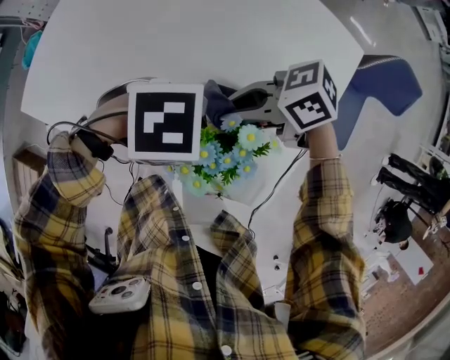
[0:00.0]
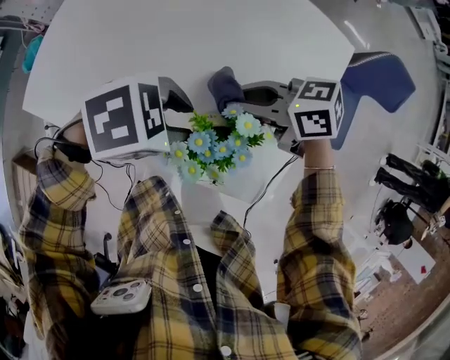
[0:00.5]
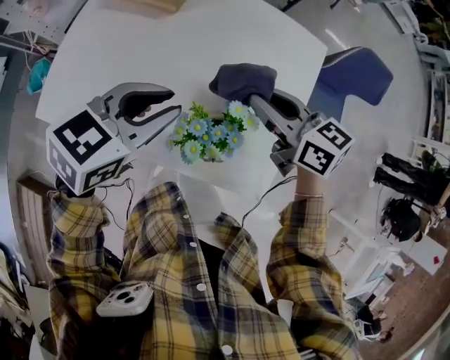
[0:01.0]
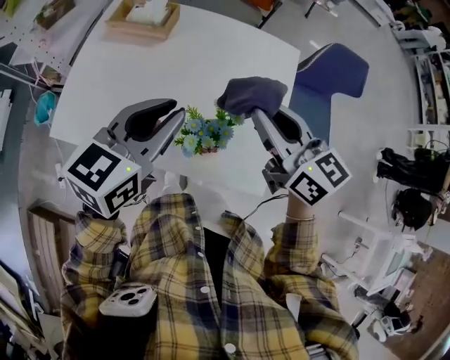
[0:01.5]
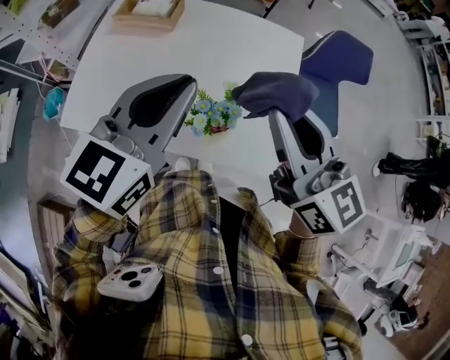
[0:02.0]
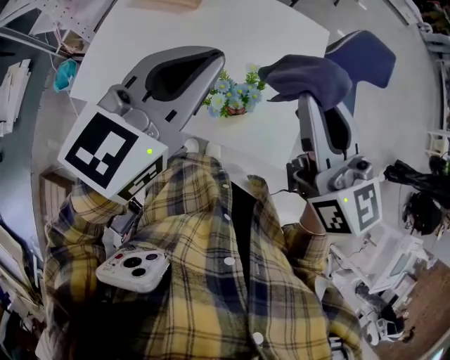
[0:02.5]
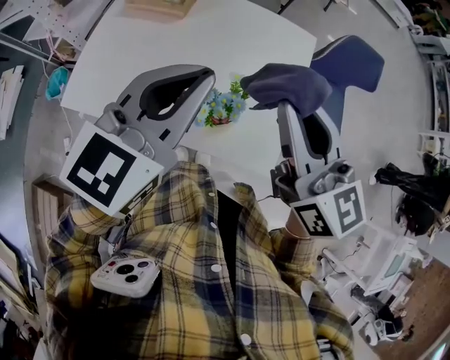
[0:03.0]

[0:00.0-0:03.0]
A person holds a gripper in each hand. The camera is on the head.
0:00.0 to 0:01.5: The grippers both shift upward by roughly 20 cm. The right gripper changes its angle by about 80 degrees, while the left gripper points its fingers approximately 30 degrees further upward.
0:01.5 to 0:03.0: The left gripper shifts approximately 10 cm upward. Meanwhile the right gripper is displaced upward and backward by roughly 10 cm.

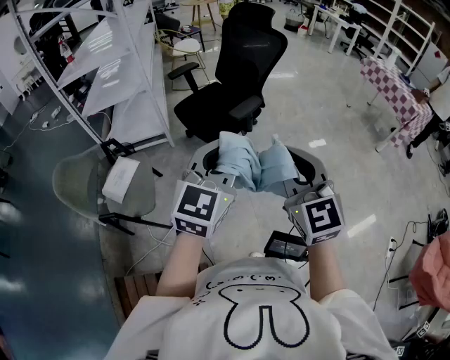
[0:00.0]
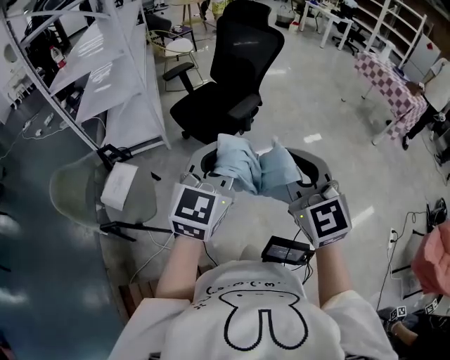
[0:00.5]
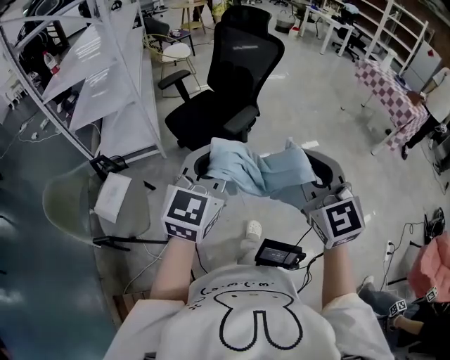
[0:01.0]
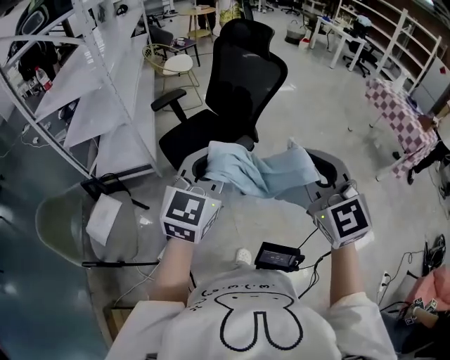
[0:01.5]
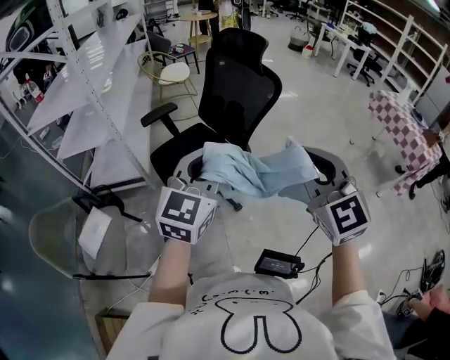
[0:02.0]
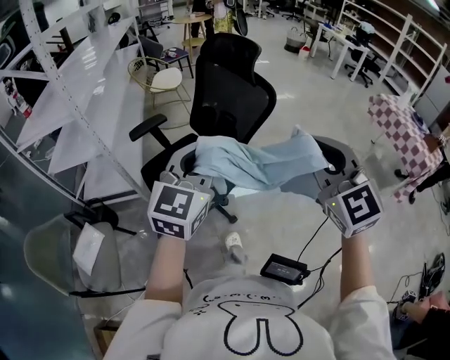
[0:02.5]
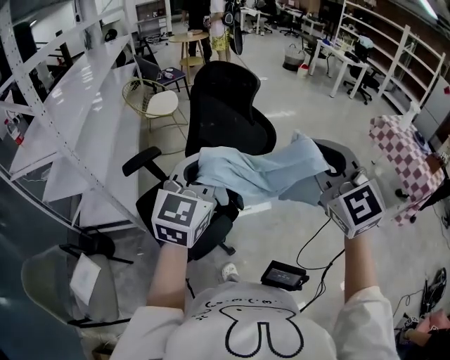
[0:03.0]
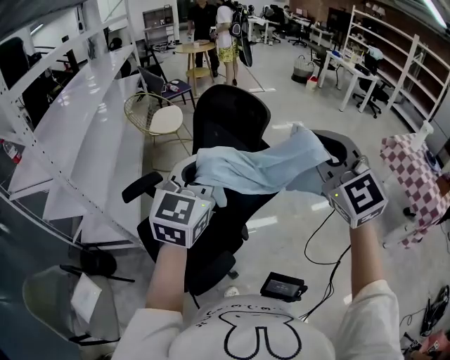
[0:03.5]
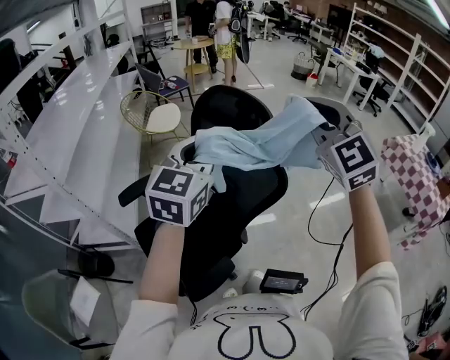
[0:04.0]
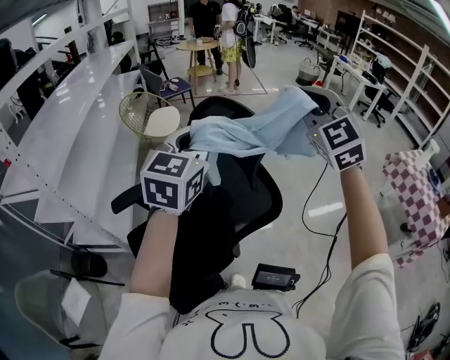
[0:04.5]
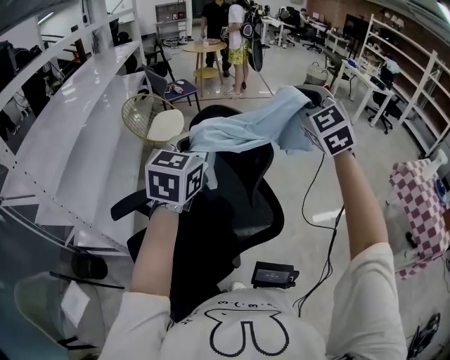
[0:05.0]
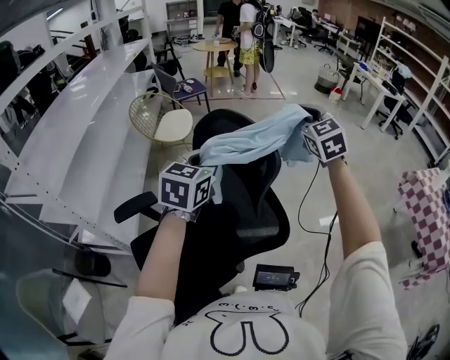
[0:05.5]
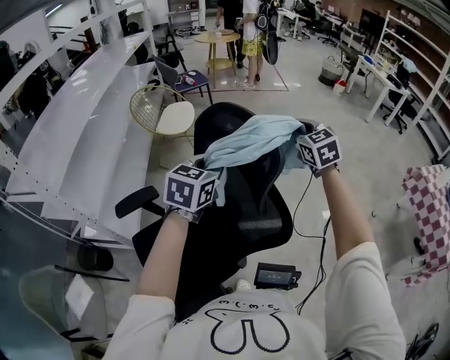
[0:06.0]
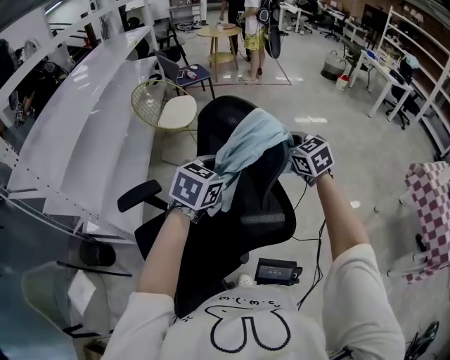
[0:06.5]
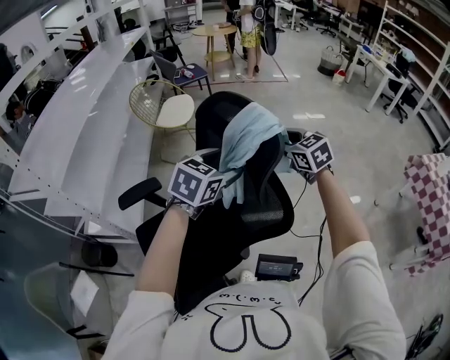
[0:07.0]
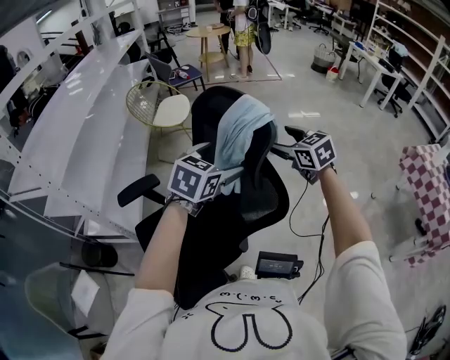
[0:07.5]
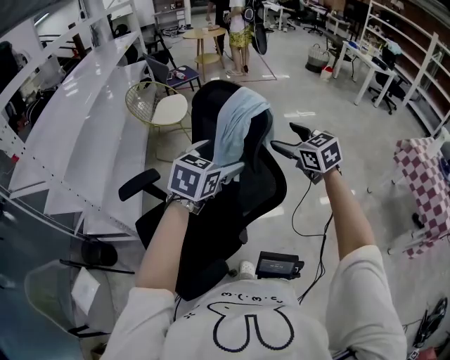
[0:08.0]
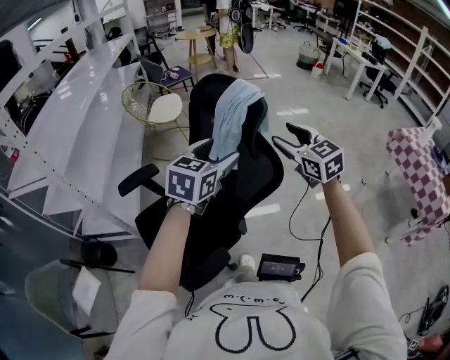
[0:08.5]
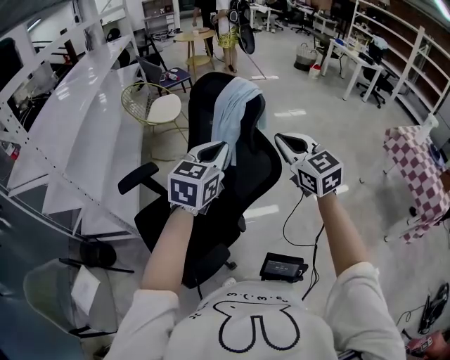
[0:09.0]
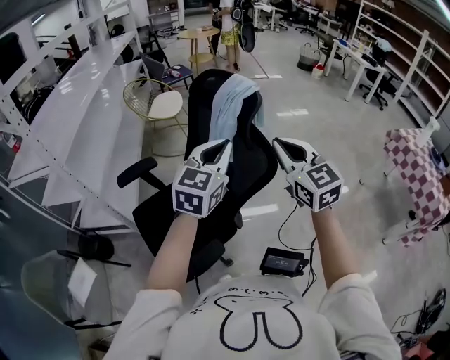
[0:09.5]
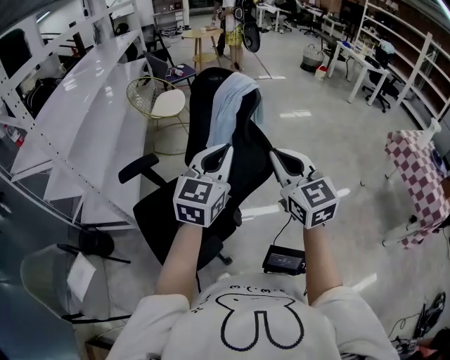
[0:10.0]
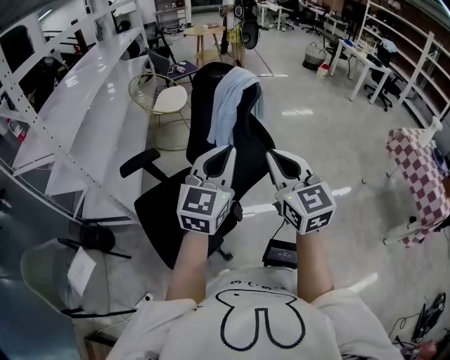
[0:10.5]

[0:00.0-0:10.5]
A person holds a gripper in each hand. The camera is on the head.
0:00.0 to 0:02.0: The right gripper is displaced forward and to the right by roughly 40 cm. Meanwhile the left gripper shifts roughly 35 cm forward.
0:02.0 to 0:04.0: The two grippers travel together, forward, some 50 cm.
0:04.0 to 0:06.5: The left gripper heads downward and forward, covering about 25 cm, changes its angle by approximately 30 degrees, and opens; the right gripper is displaced forward and downward by about 35 cm, and turns by some 40 degrees.
0:06.5 to 0:08.5: Both grippers travel together backward, roughly 15 cm. The right gripper opens.
0:08.5 to 0:10.5: Both grippers travel together backward, roughly 15 cm. The right gripper closes its fingers. The left gripper turns by roughly 20 degrees, and closes up.

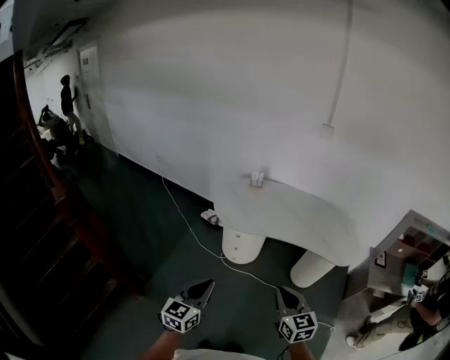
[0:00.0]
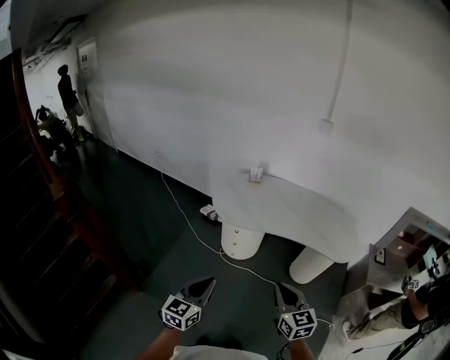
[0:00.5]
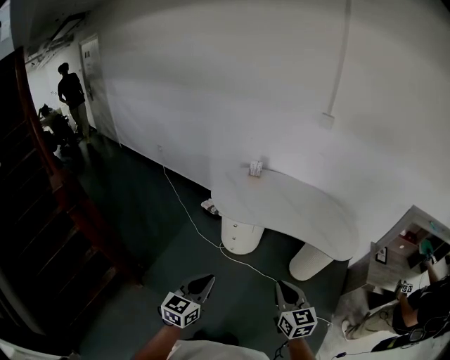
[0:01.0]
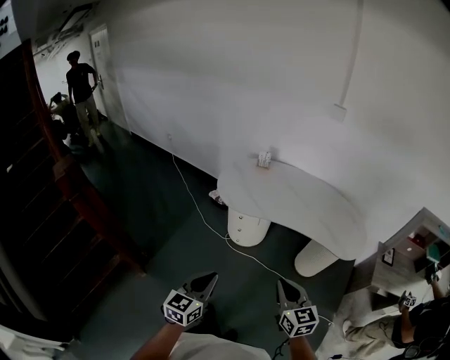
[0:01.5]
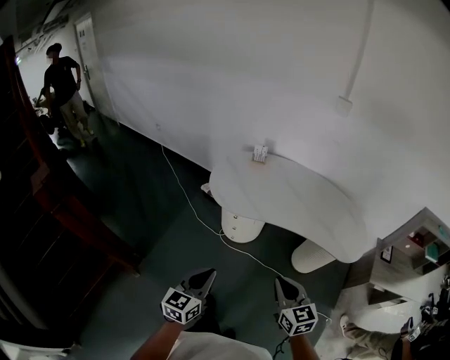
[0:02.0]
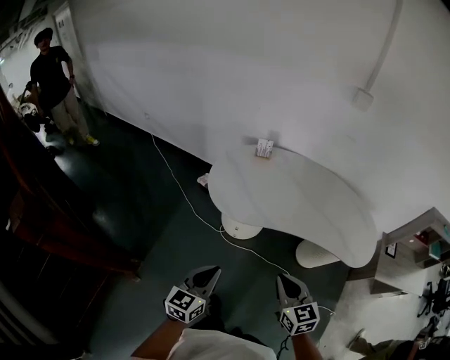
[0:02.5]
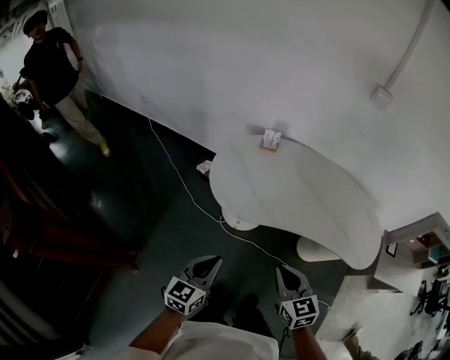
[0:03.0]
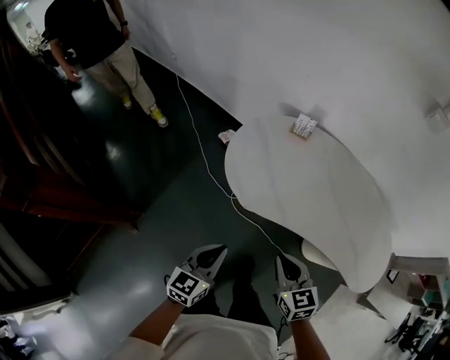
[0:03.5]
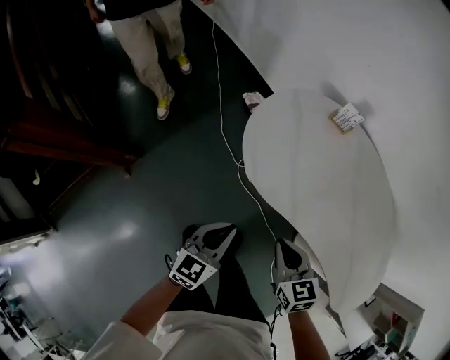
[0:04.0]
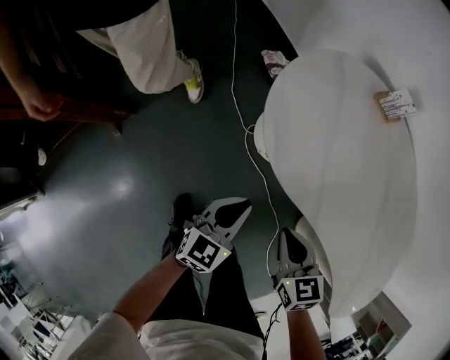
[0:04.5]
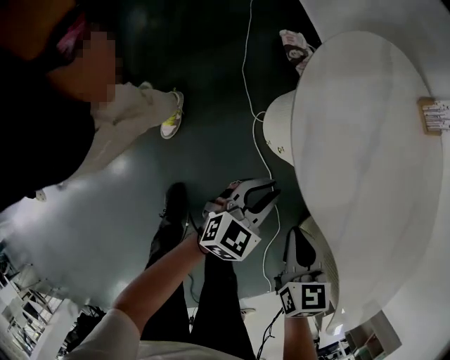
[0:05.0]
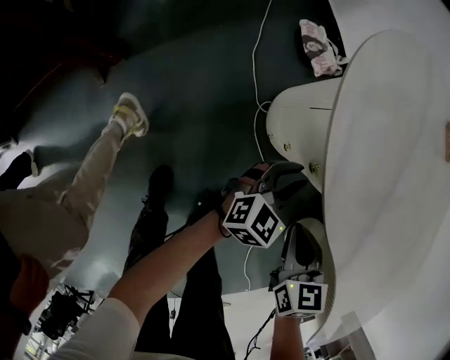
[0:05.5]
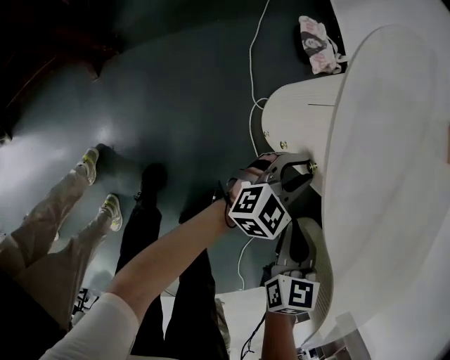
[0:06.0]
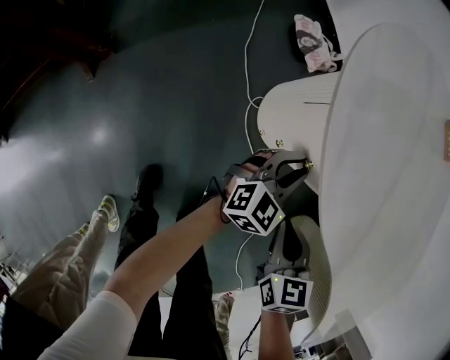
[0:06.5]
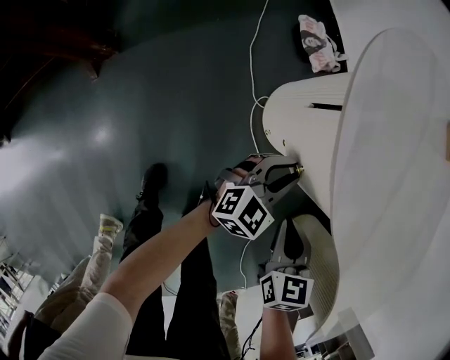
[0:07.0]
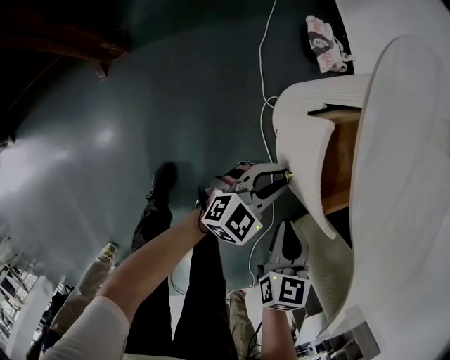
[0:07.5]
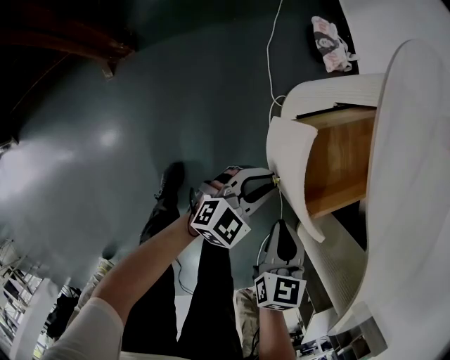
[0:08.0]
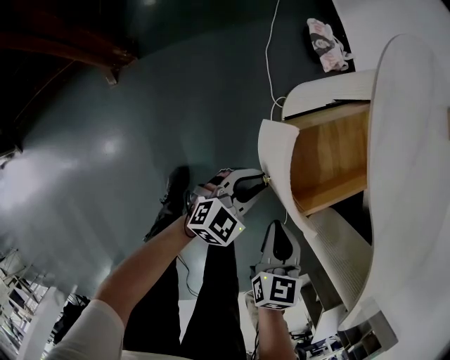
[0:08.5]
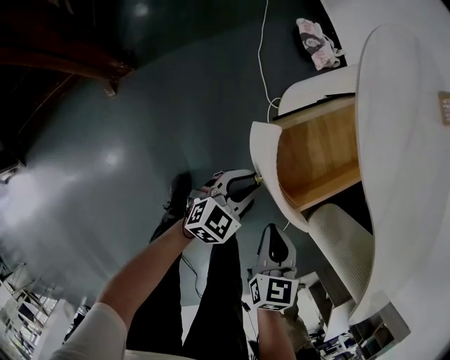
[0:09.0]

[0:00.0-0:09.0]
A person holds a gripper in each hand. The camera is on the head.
0:00.0 to 0:02.0: The left gripper heads forward, downward and to the right, covering roughly 15 cm; the right gripper is displaced forward and downward by approximately 10 cm.
0:02.0 to 0:04.5: The left gripper shifts roughly 35 cm downward. The right gripper moves about 50 cm, and changes its angle by roughly 40 degrees.
0:04.5 to 0:07.0: The two grippers go approximately 20 cm downward.
0:07.0 to 0:09.0: The grippers both shift backward and to the left by approximately 20 cm.

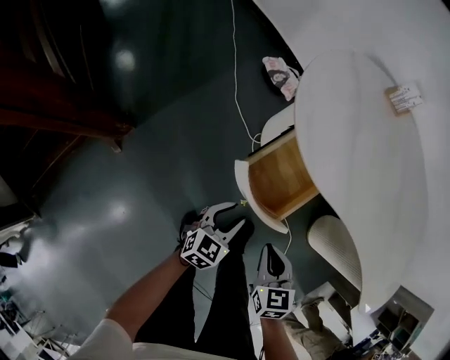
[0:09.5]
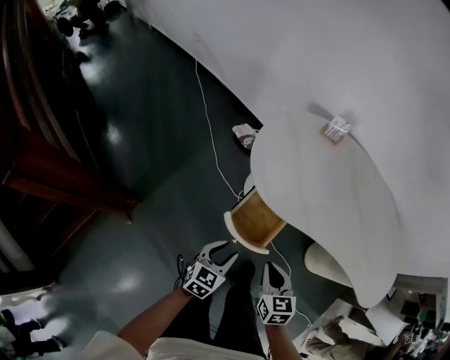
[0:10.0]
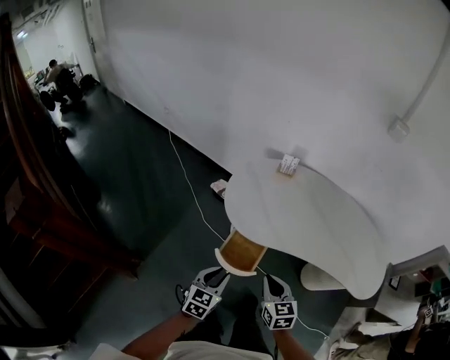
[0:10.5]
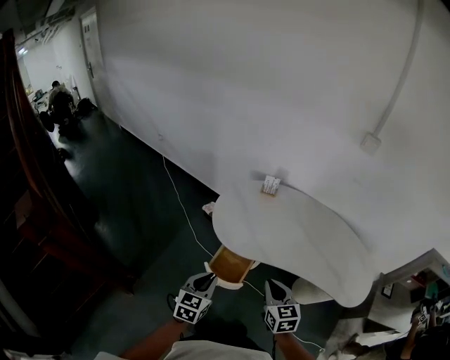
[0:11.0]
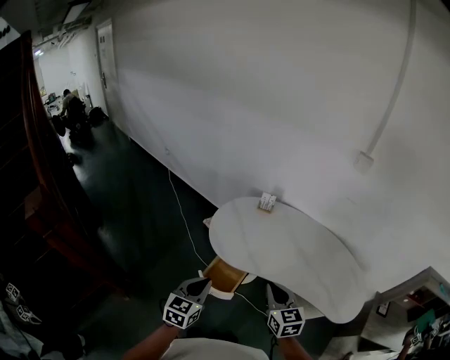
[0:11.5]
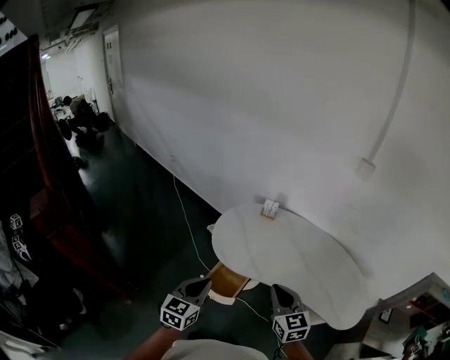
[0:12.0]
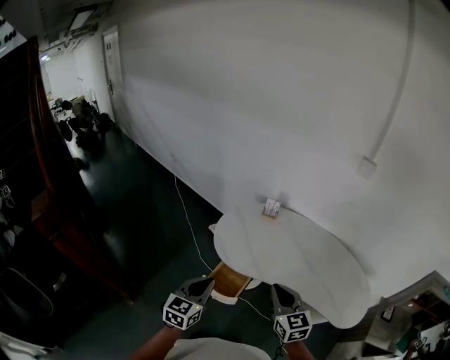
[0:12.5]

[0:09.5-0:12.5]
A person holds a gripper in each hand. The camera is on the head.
0:09.5 to 0:11.0: The grippers both shift upward by roughly 40 cm. The left gripper closes its fingers. The right gripper swivels some 20 degrees.
0:11.0 to 0:12.5: The grippers both shift upward by about 10 cm.
